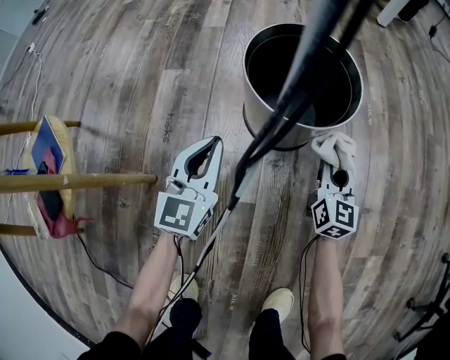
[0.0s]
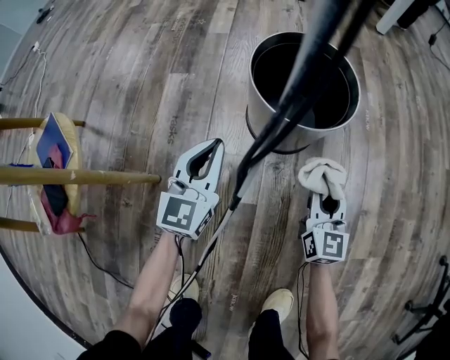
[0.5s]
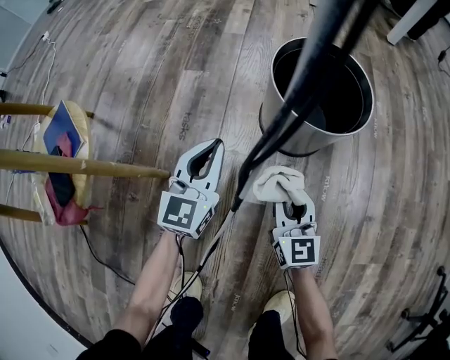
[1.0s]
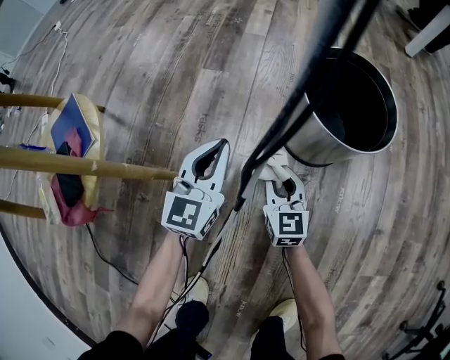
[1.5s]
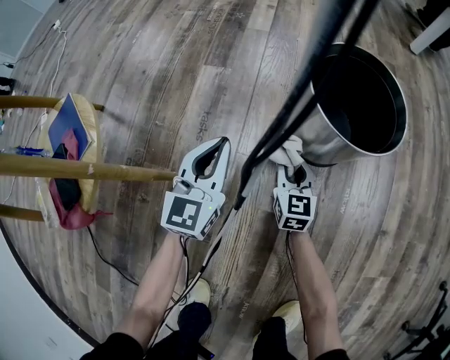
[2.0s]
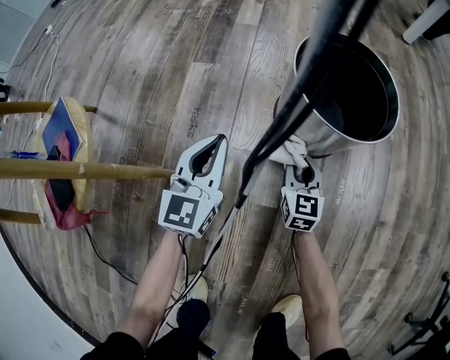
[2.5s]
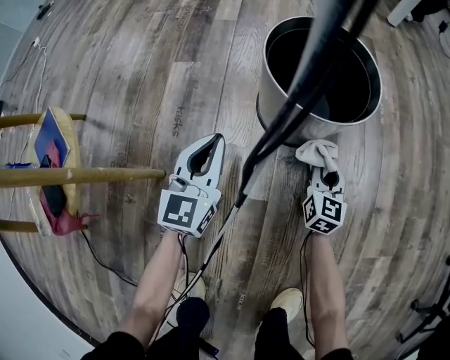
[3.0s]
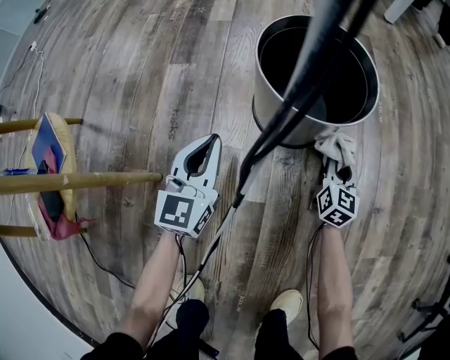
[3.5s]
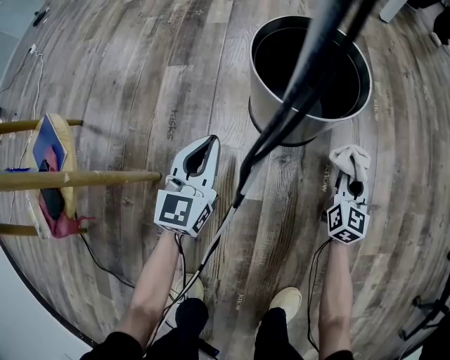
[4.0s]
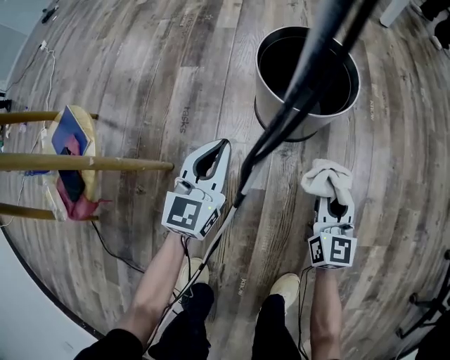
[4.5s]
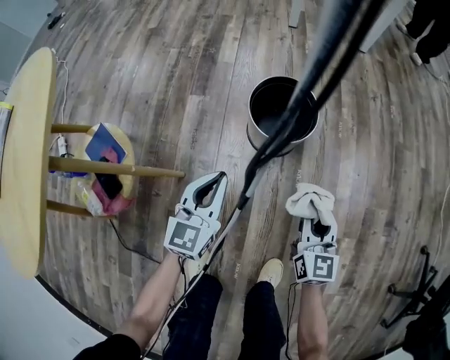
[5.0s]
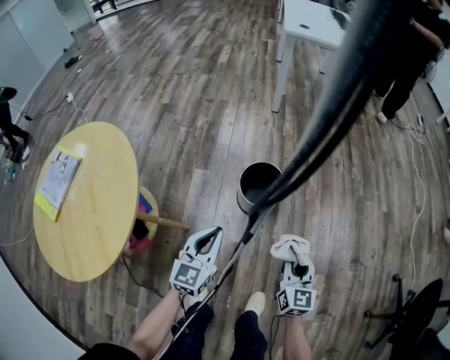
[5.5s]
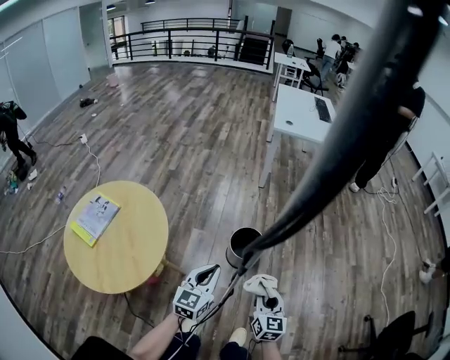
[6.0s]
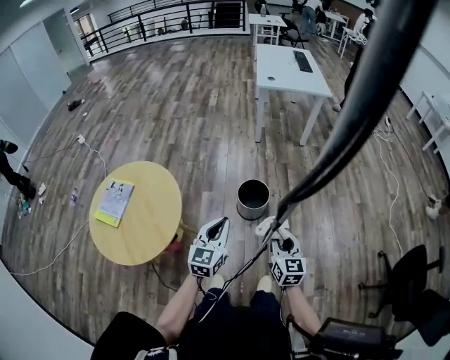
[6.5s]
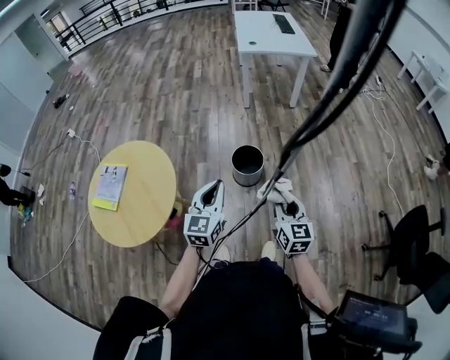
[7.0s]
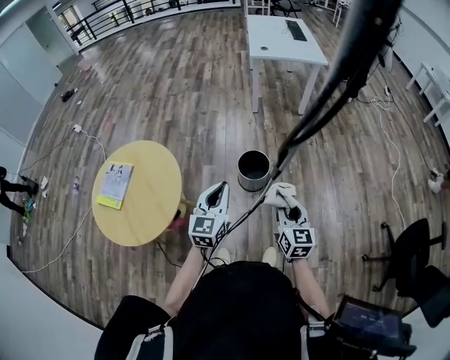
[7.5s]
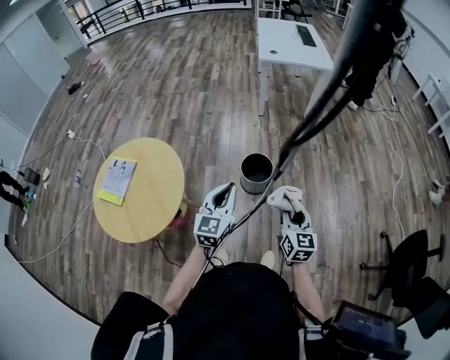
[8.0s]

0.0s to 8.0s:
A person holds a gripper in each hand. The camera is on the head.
0.0s to 2.0s: The right gripper heads to the left, covering about 20 cm, and turns by roughly 20 degrees; the left gripper travels to the left by some 10 cm.
2.0s to 4.0s: The right gripper heads to the right, covering roughly 25 cm, and rotates some 30 degrees. Meanwhile the left gripper shifts some 5 cm to the right.
4.0s to 6.0s: Both grippers travel together upward, approximately 70 cm.
6.0s to 8.0s: The grippers both shift upward by some 15 cm.

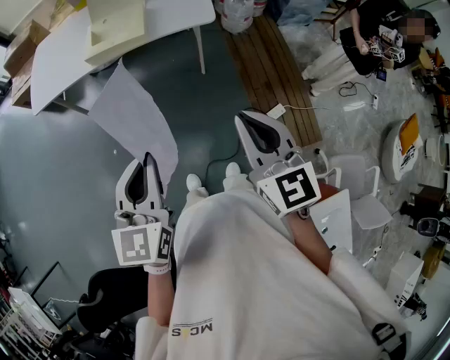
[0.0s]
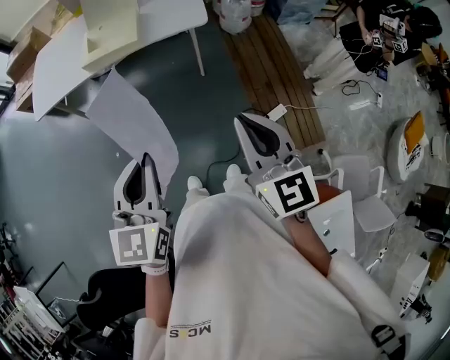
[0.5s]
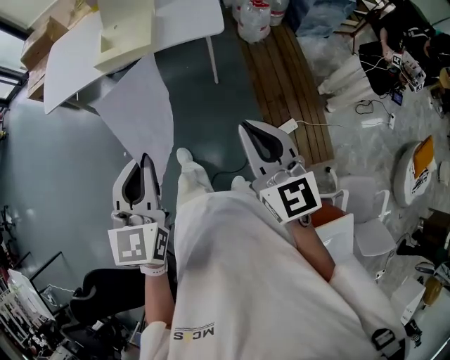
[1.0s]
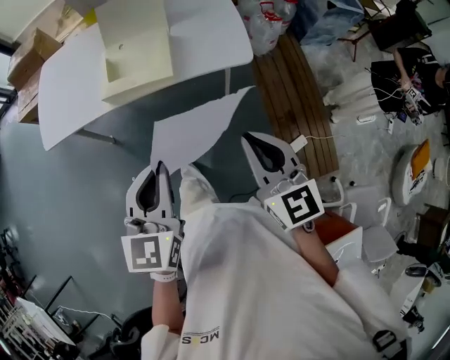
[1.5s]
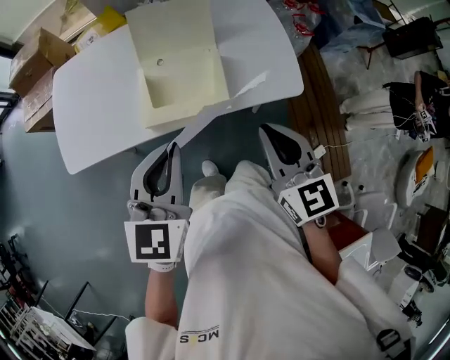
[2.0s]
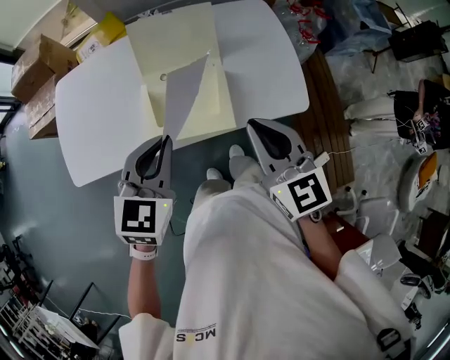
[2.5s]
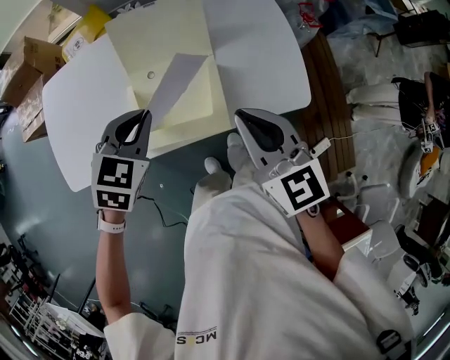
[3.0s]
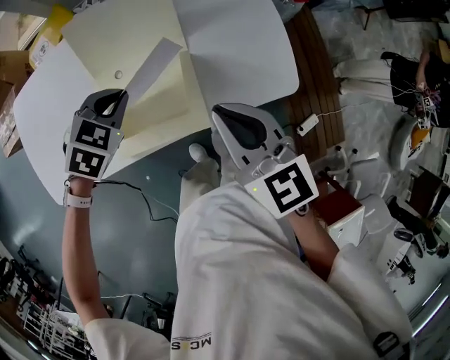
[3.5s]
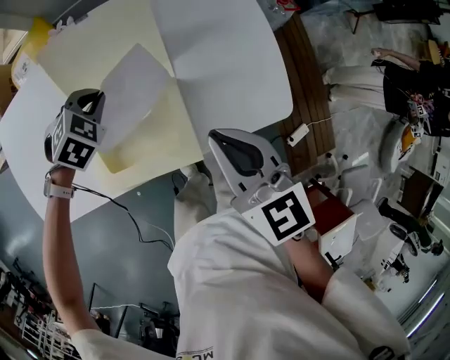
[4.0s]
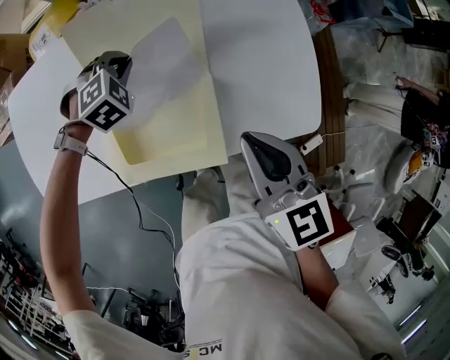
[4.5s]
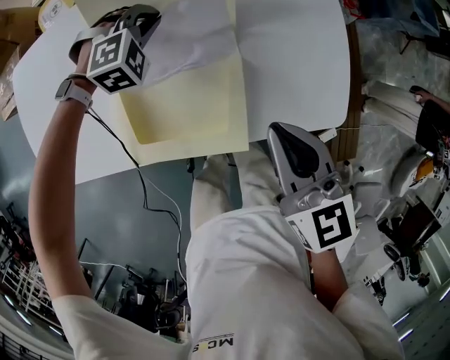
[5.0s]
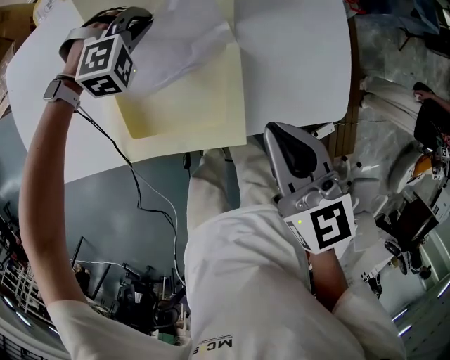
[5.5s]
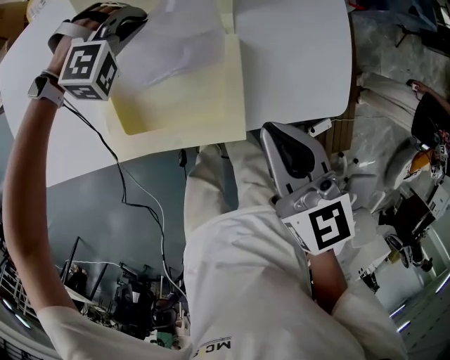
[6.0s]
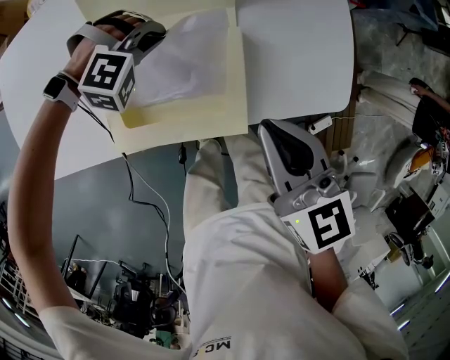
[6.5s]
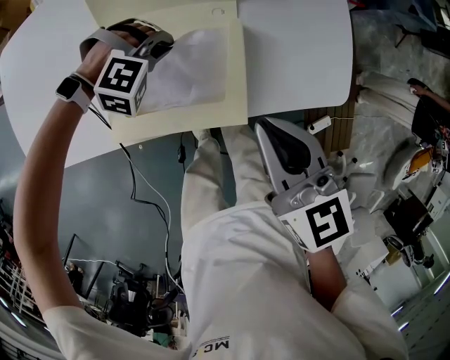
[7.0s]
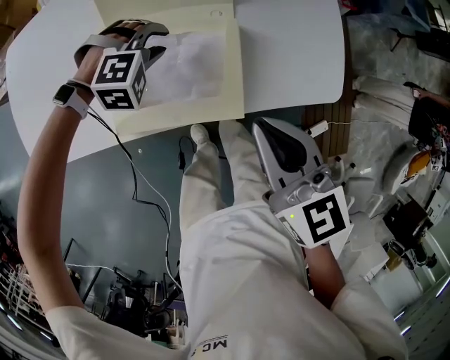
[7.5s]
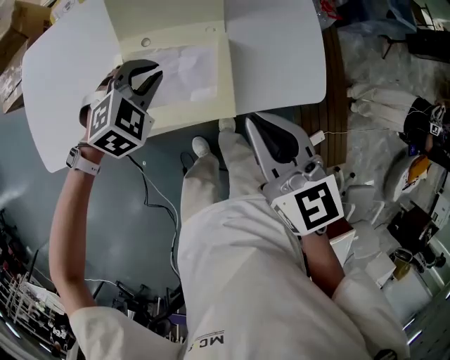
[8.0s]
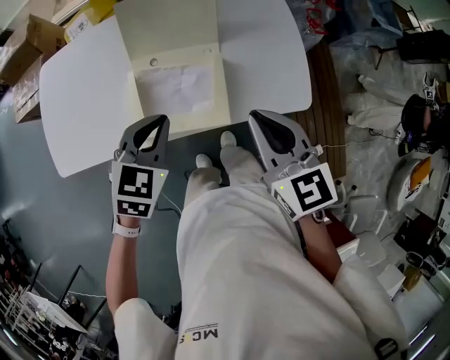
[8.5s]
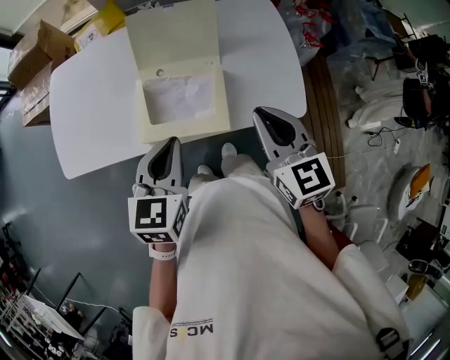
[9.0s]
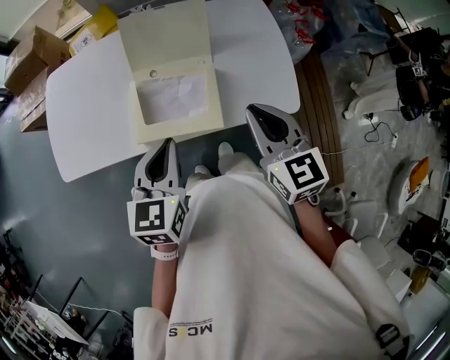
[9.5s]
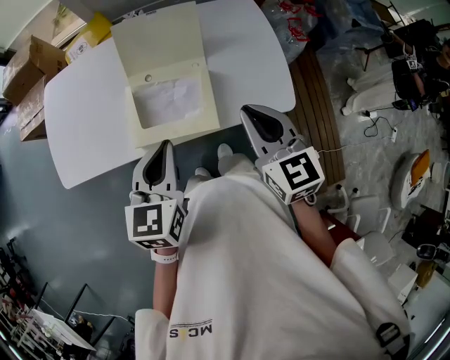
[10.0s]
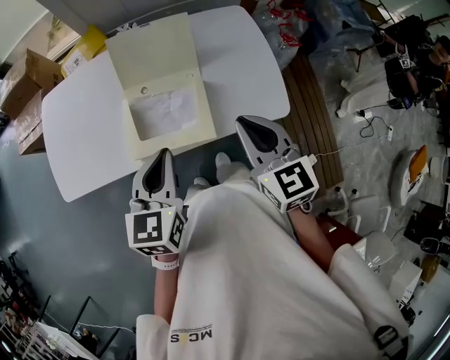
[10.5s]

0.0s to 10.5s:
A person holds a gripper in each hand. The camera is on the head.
0.0s to 2.0s: The pair of grippers is taken forward and to the left, some 50 cm.
2.0s to 4.0s: The right gripper heads forward and downward, covering roughly 20 cm; the left gripper travels forward and downward by about 40 cm, and tilts its fingers roughly 50 degrees downward.
4.0s to 6.5s: The grippers both shift downward by roughly 5 cm. The left gripper moves roughly 10 cm forward and comes back, and rotates around the line of its fingers by roughly 50 degrees, clockwise from behind.
6.5s to 8.5s: The left gripper is displaced upward and backward by some 30 cm, twists roughly 80 degrees counterclockwise, seen from behind, and opens, then closes again. The right gripper shifts about 10 cm upward.
8.5s to 10.5s: The left gripper moves upward and backward, some 10 cm, and swivels roughly 30 degrees.

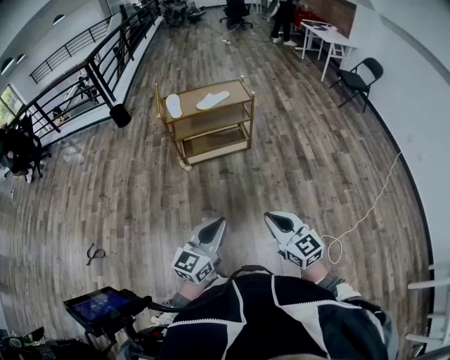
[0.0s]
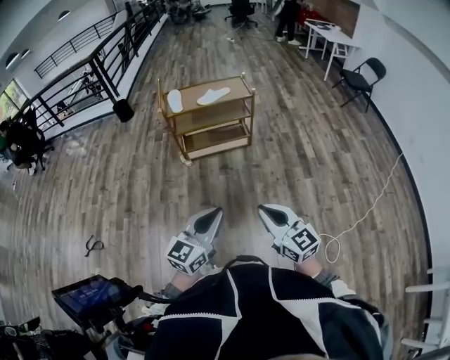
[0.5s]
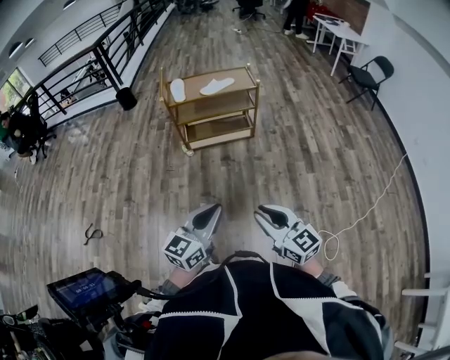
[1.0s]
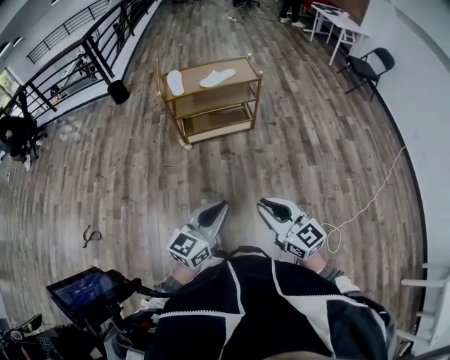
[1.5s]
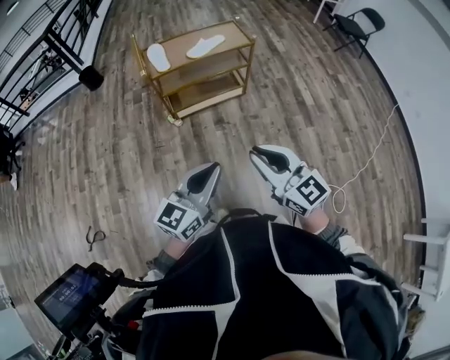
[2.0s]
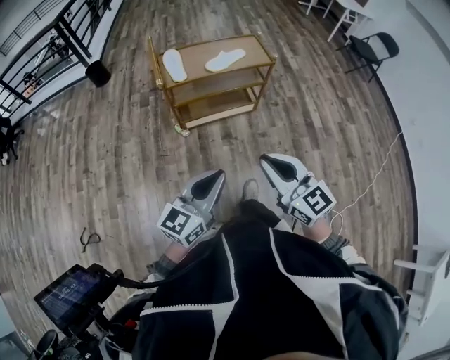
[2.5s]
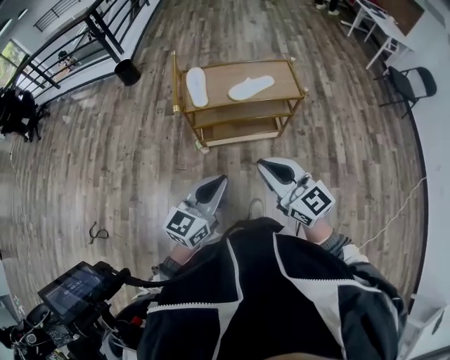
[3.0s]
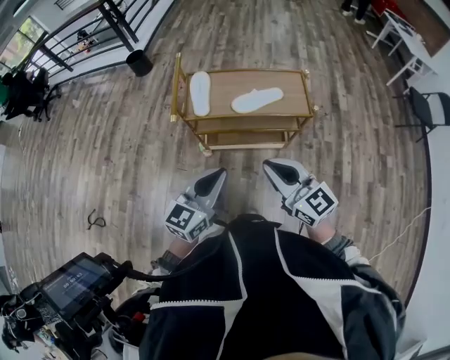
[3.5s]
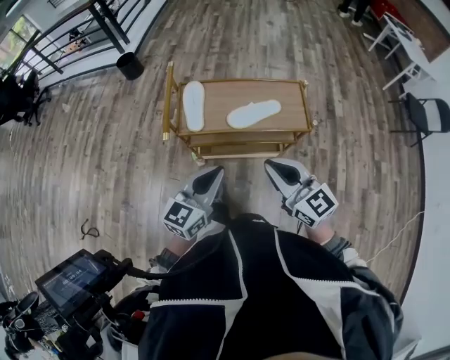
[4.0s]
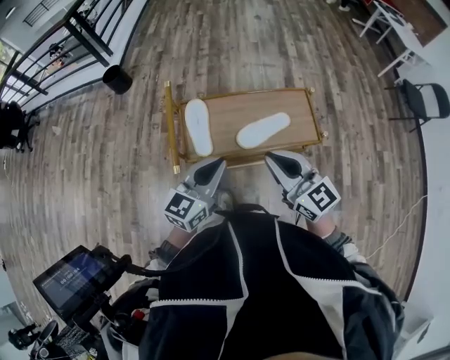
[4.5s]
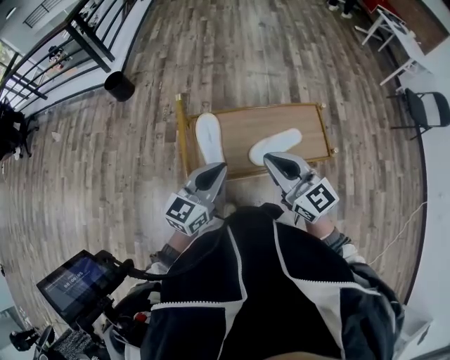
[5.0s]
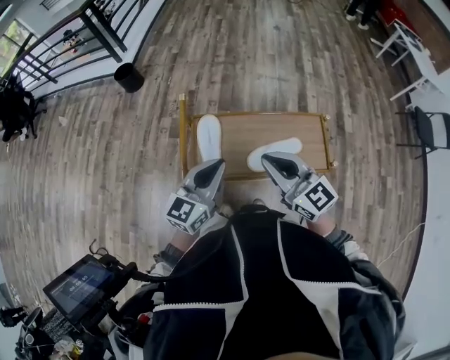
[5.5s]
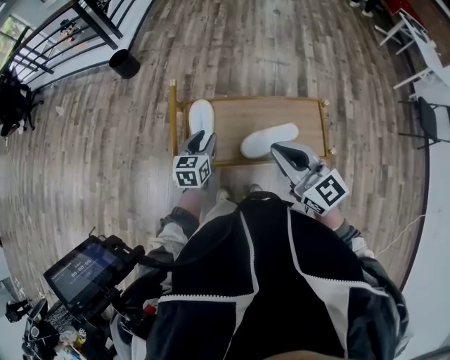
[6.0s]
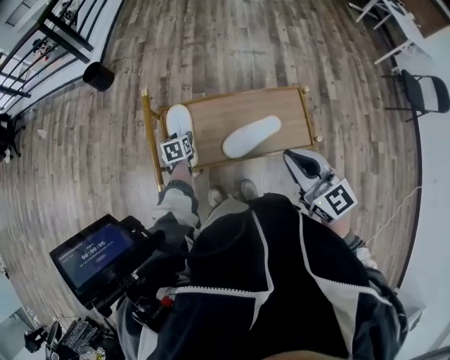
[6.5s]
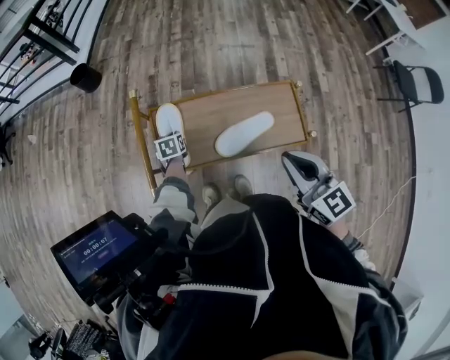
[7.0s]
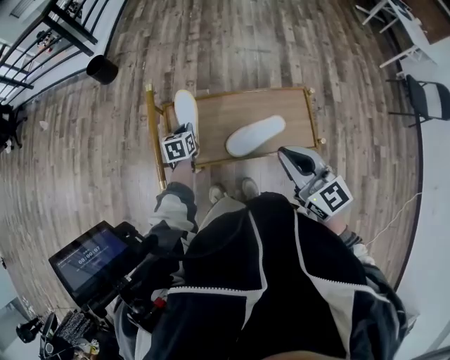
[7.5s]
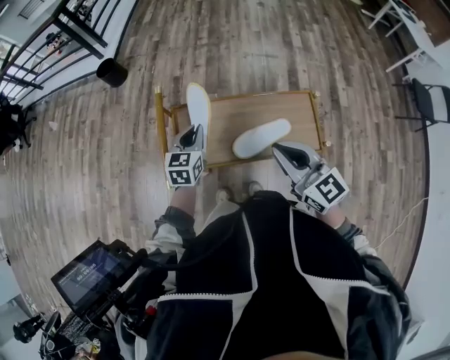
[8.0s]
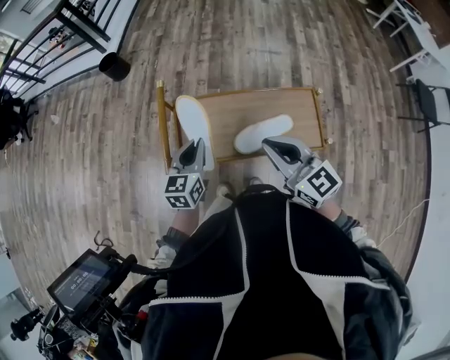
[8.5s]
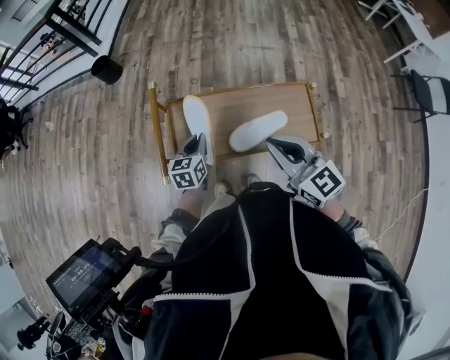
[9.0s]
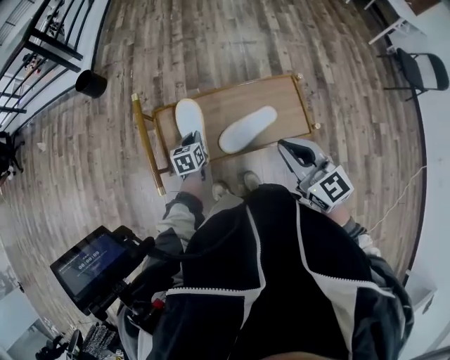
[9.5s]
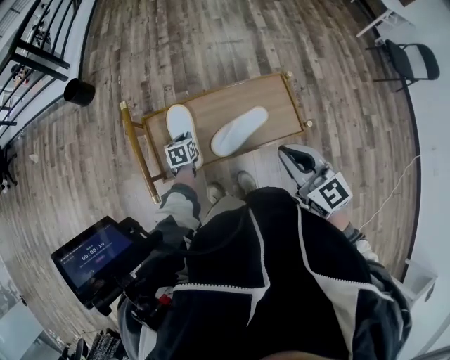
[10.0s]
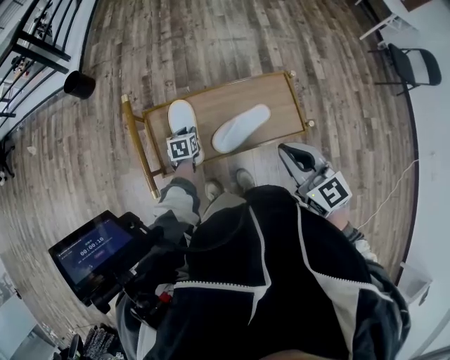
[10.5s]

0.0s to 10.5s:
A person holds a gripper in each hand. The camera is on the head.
0.0s to 2.0s: Both grippers move forward and to the left, roughly 20 cm.
2.0s to 4.0s: Both grippers are carried forward, roughly 40 cm. The left gripper rotates roughly 20 degrees.
4.0s to 6.5s: The right gripper goes about 20 cm forward. Meanwhile the left gripper heads forward and downward, covering about 50 cm, points its fingers approximately 50 degrees further downward, and opens up.
6.5s to 8.5s: The right gripper is displaced to the left by some 5 cm. Meanwhile the left gripper heads upward and backward, covering some 25 cm, tips its fingers upward by roughly 30 degrees, and closes.
8.5s to 10.5s: The left gripper shifts approximately 25 cm downward, and tilts its fingers approximately 30 degrees downward, while the right gripper goes about 10 cm to the right.
